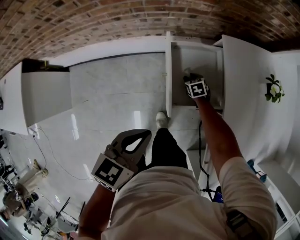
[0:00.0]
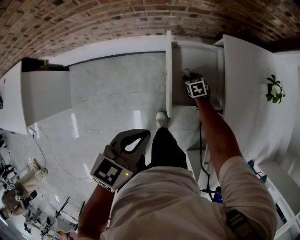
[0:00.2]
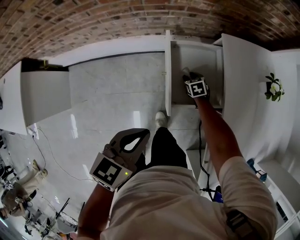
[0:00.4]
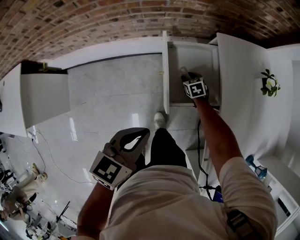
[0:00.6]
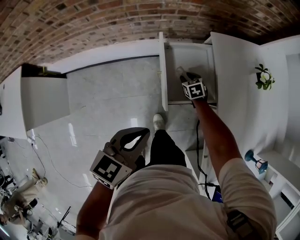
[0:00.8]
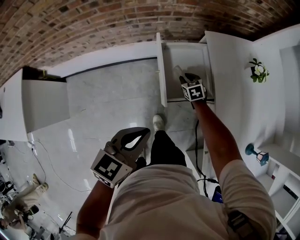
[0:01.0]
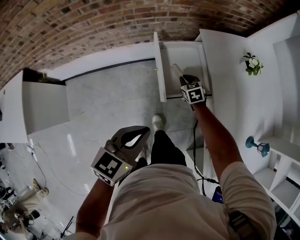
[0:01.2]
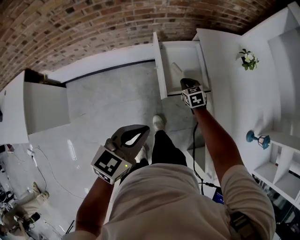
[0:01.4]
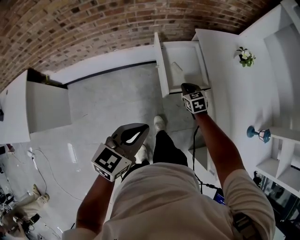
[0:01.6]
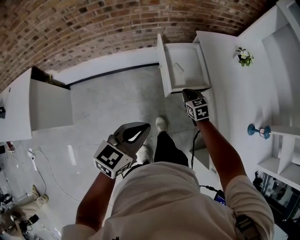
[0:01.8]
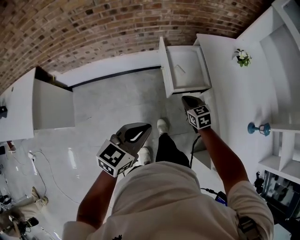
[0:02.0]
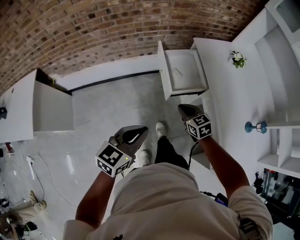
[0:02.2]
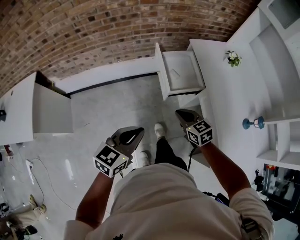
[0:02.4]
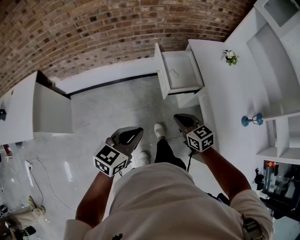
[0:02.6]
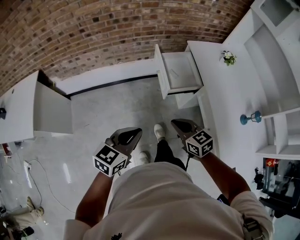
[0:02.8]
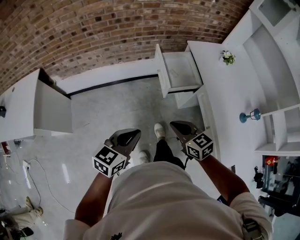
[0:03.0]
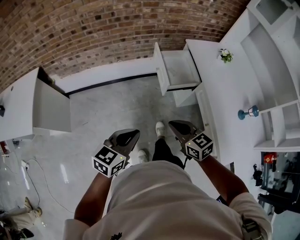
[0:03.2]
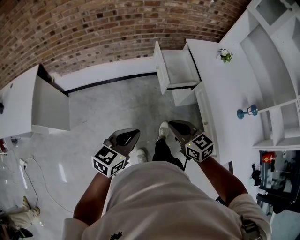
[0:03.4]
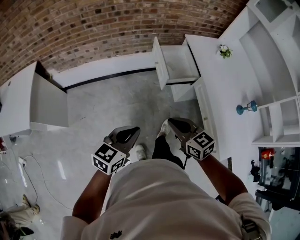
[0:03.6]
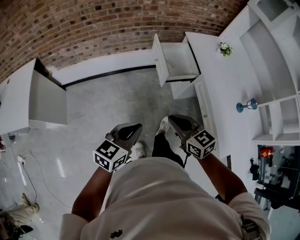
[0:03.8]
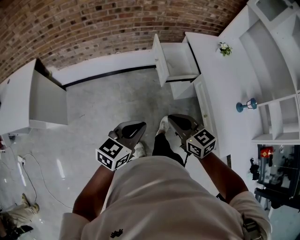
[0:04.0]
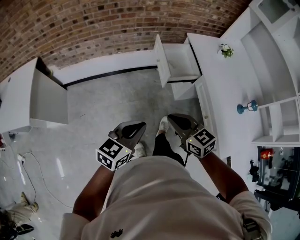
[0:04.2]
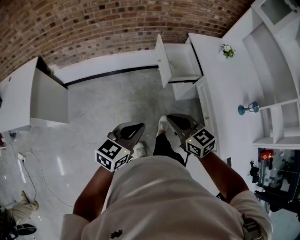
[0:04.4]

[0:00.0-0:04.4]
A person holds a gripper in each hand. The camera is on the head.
0:00.0 to 0:01.4: The right gripper shifts roughly 20 cm upward and backward, and closes up, while the left gripper shifts some 15 cm backward and upward.
0:01.4 to 0:03.0: The left gripper heads backward and to the left, covering approximately 20 cm. The right gripper goes about 40 cm backward and upward, and turns by approximately 30 degrees.
0:03.0 to 0:04.4: The right gripper shifts by approximately 5 cm.

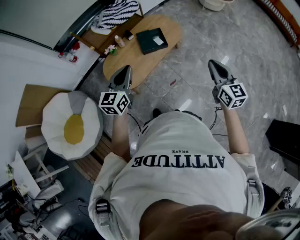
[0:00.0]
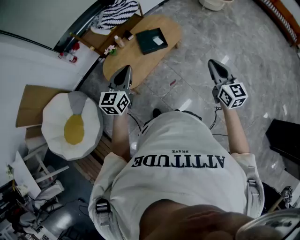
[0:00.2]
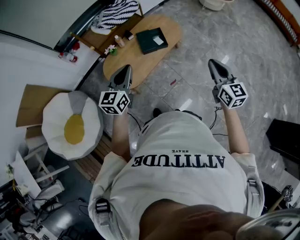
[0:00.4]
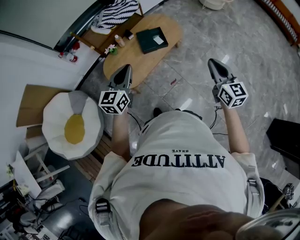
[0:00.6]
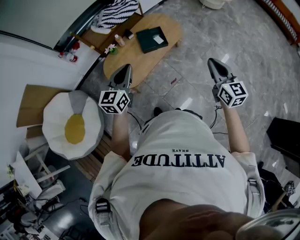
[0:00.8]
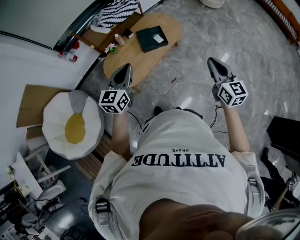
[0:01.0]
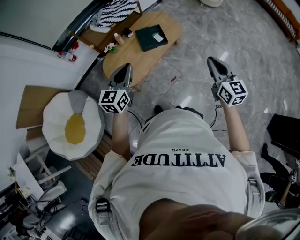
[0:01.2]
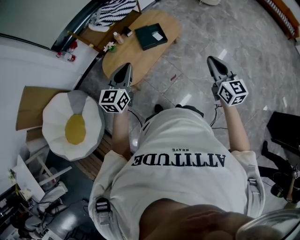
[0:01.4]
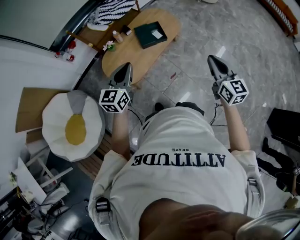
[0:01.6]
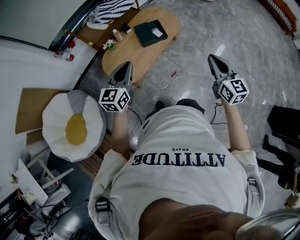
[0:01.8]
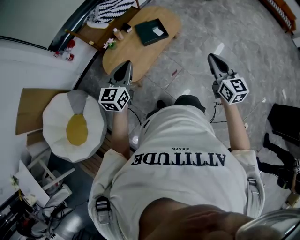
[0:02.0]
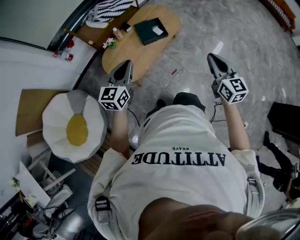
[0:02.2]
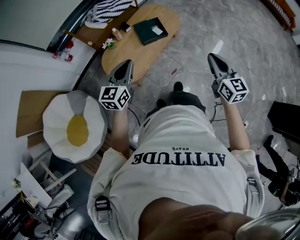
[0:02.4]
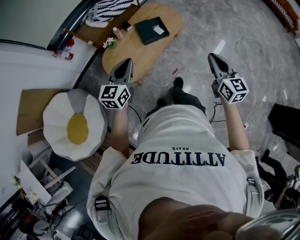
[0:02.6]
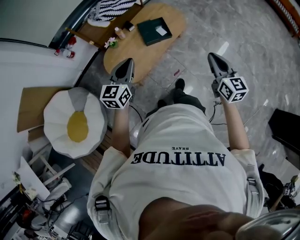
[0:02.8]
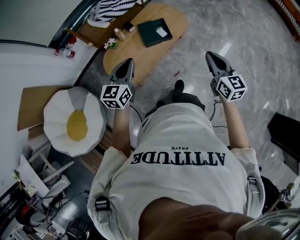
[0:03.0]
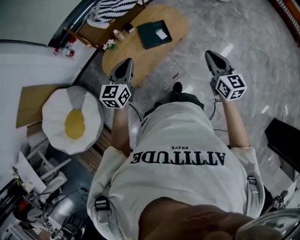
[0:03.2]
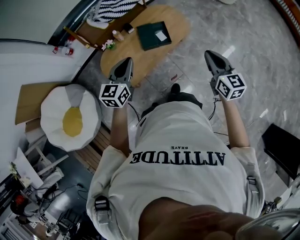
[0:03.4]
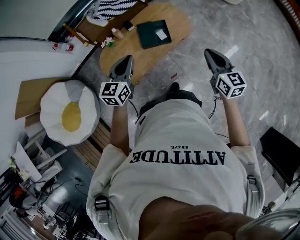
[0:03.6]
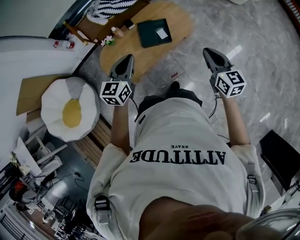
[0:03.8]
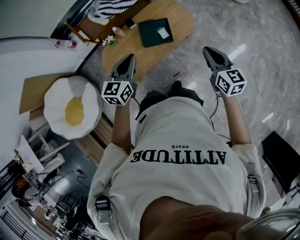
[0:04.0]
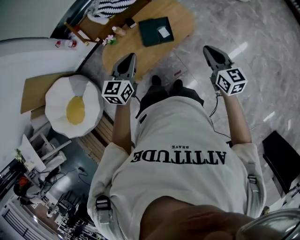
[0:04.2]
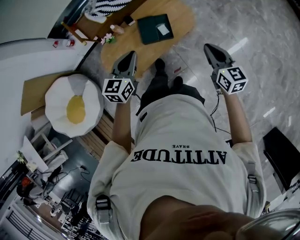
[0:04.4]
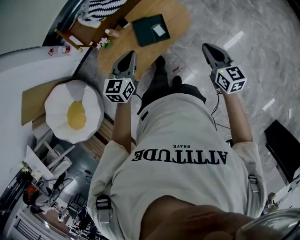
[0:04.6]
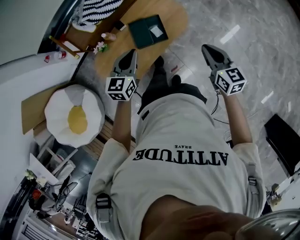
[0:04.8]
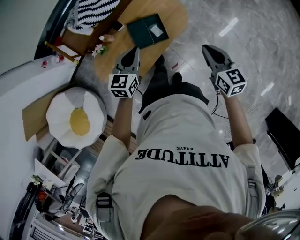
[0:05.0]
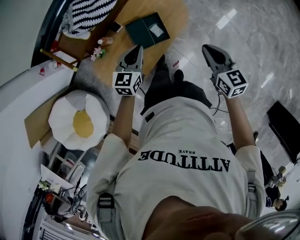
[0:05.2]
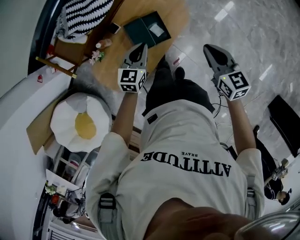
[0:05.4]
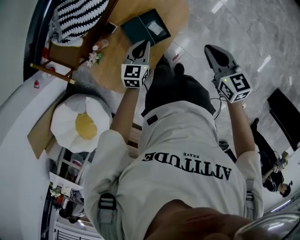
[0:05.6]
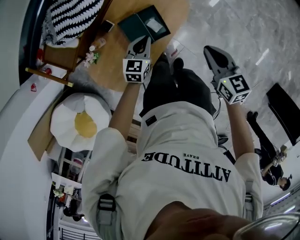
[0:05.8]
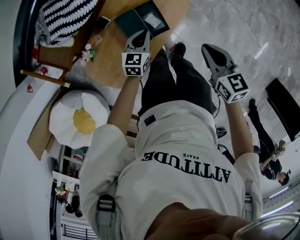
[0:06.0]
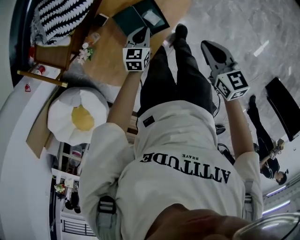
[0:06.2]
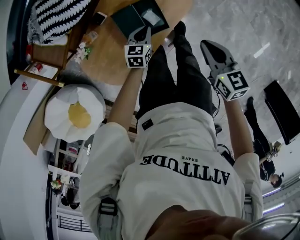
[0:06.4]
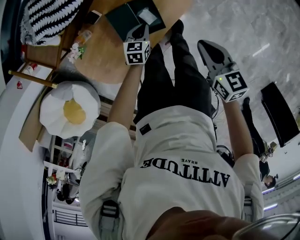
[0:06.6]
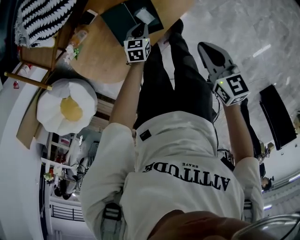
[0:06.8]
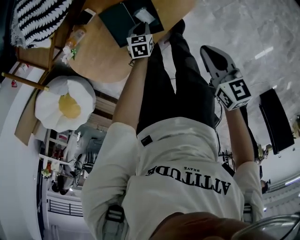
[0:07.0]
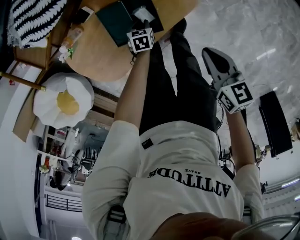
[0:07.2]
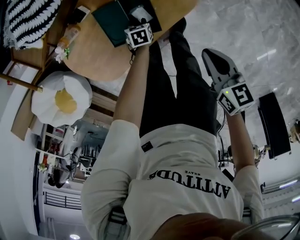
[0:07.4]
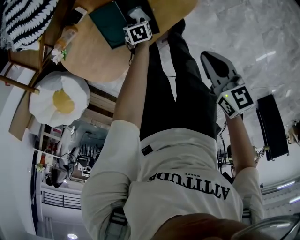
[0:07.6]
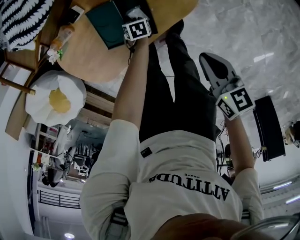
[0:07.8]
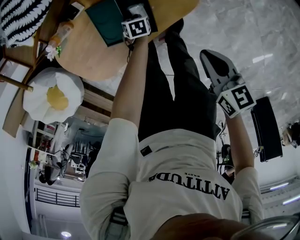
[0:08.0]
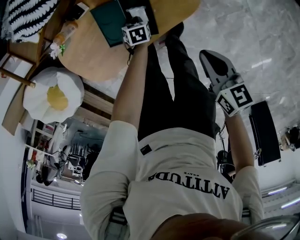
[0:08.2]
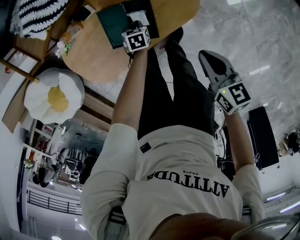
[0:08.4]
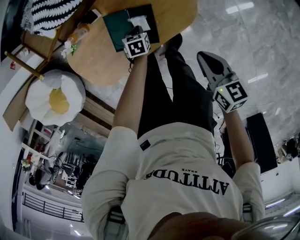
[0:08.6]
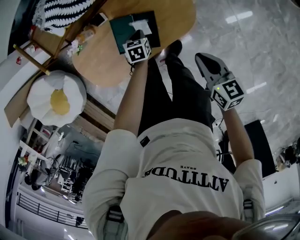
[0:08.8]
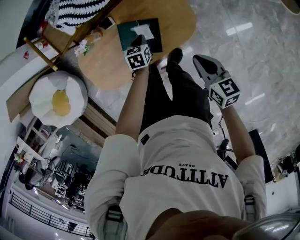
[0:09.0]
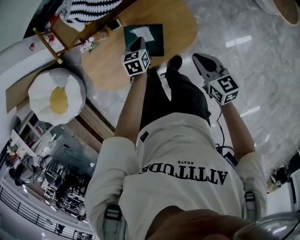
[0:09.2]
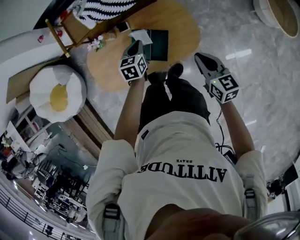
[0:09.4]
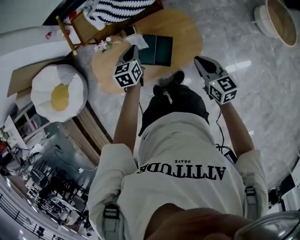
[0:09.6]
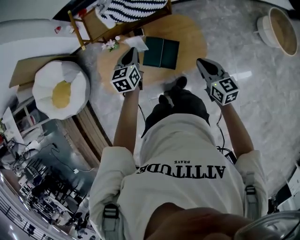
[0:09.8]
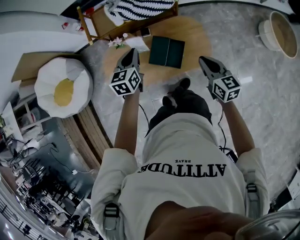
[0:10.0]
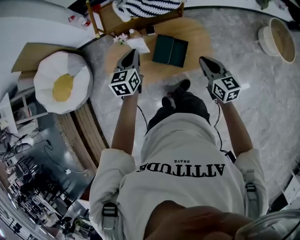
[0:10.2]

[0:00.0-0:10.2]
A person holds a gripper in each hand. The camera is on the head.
0:00.0 to 0:01.4: The grippers move only a little.
0:01.4 to 0:03.0: The grippers both shift forward by some 10 cm.
0:03.0 to 0:04.4: The grippers both shift forward and to the right by roughly 20 cm.
0:04.4 to 0:05.8: The left gripper travels downward and forward by roughly 40 cm, and swivels roughly 20 degrees, while the right gripper moves forward, downward and to the left, roughly 25 cm, and rotates roughly 20 degrees.
0:05.8 to 0:07.2: The right gripper moves downward, about 15 cm. The left gripper is displaced downward by approximately 30 cm, and angles its fingers downward, by about 40 degrees.
0:07.2 to 0:08.8: The right gripper heads upward, covering about 5 cm; the left gripper shifts approximately 15 cm upward.
0:08.8 to 0:10.2: The right gripper travels upward and to the left by approximately 25 cm, and turns by about 30 degrees. Meanwhile the left gripper is displaced upward and to the left by approximately 50 cm, and points its fingers approximately 40 degrees further upward.

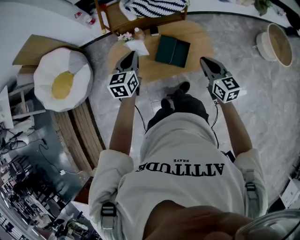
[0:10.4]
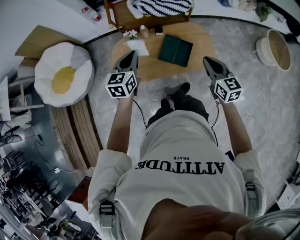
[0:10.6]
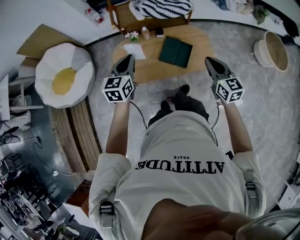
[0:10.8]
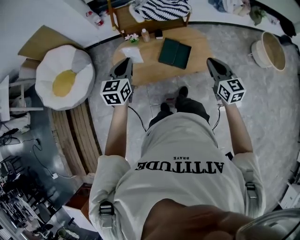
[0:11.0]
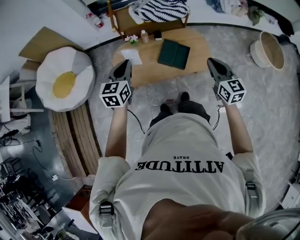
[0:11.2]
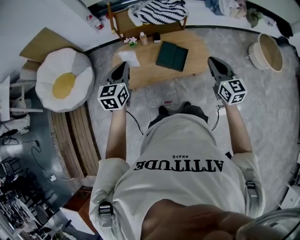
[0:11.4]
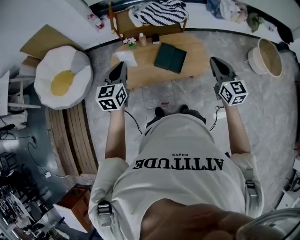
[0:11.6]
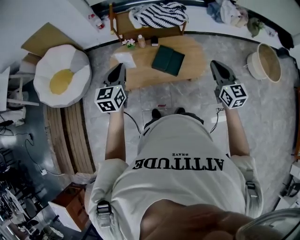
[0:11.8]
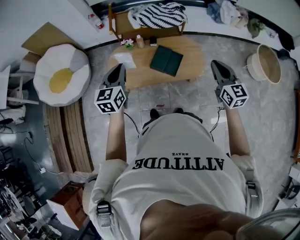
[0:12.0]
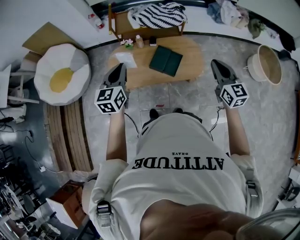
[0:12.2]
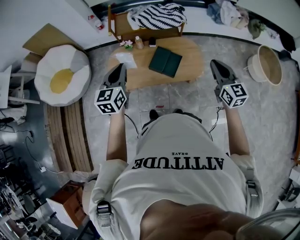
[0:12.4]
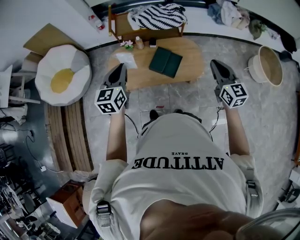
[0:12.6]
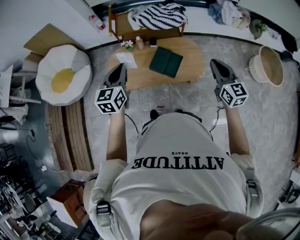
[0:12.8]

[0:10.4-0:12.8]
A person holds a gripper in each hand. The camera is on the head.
0:10.4 to 0:11.6: The left gripper heads backward, upward and to the left, covering roughly 20 cm. Meanwhile the right gripper travels upward and backward by about 15 cm.
0:11.6 to 0:12.8: Both grippers move to the right, approximately 5 cm.

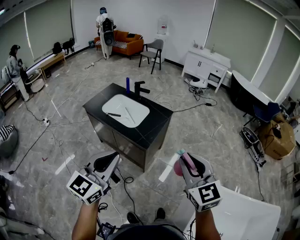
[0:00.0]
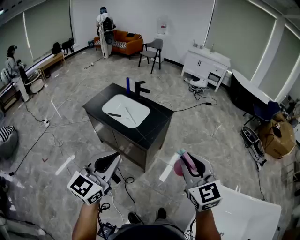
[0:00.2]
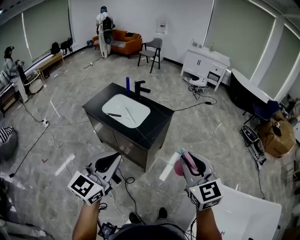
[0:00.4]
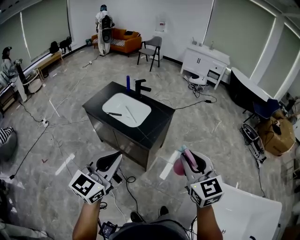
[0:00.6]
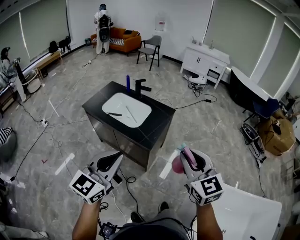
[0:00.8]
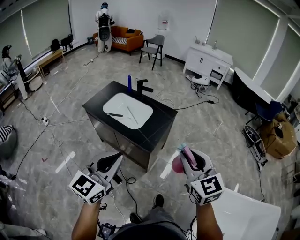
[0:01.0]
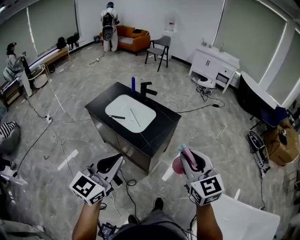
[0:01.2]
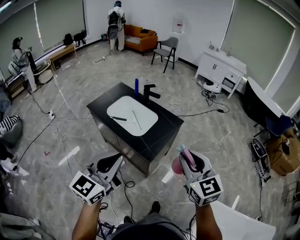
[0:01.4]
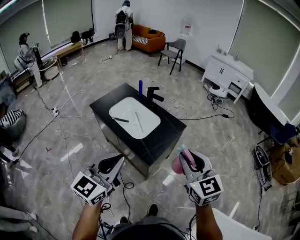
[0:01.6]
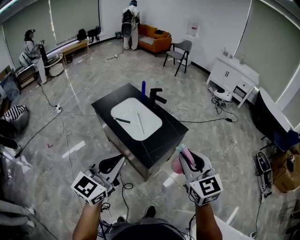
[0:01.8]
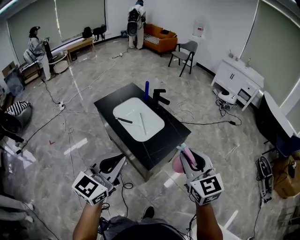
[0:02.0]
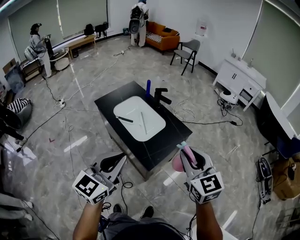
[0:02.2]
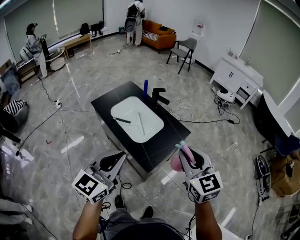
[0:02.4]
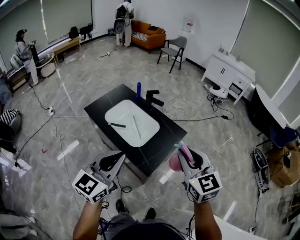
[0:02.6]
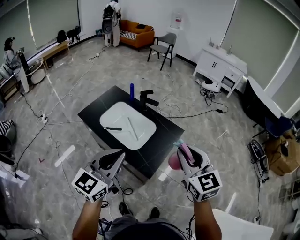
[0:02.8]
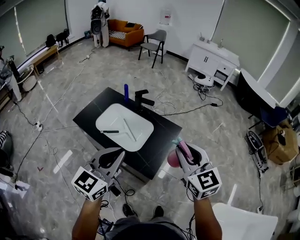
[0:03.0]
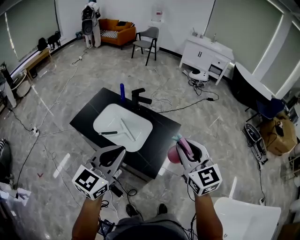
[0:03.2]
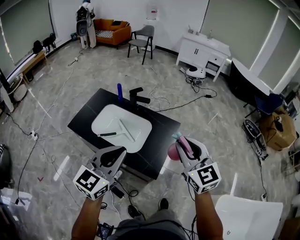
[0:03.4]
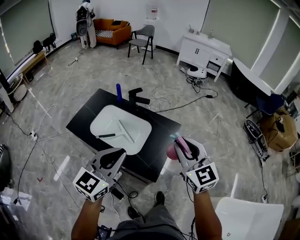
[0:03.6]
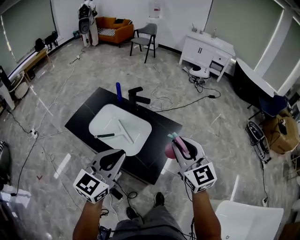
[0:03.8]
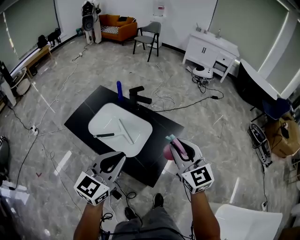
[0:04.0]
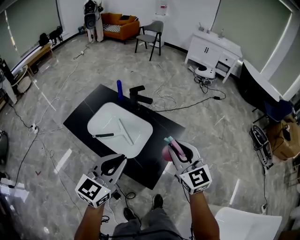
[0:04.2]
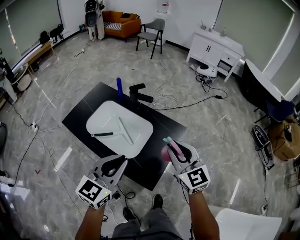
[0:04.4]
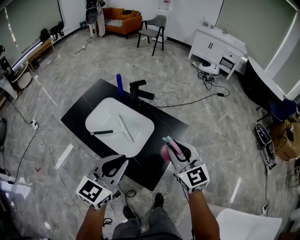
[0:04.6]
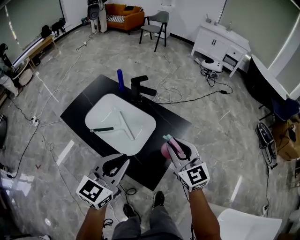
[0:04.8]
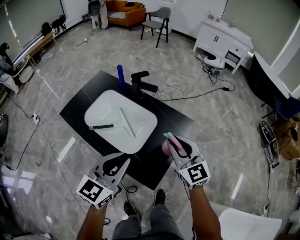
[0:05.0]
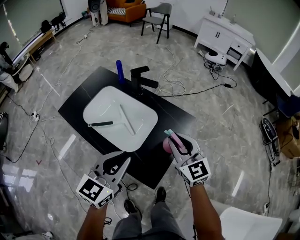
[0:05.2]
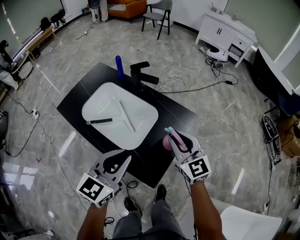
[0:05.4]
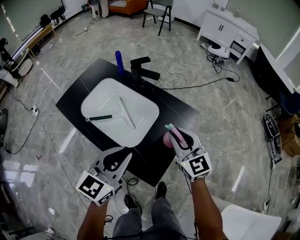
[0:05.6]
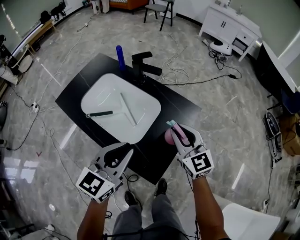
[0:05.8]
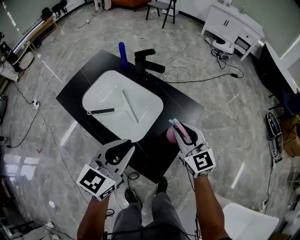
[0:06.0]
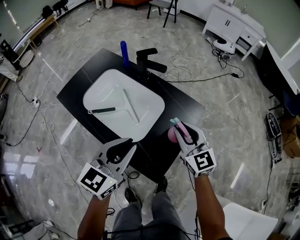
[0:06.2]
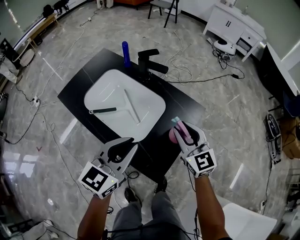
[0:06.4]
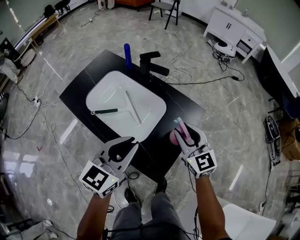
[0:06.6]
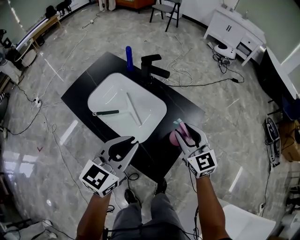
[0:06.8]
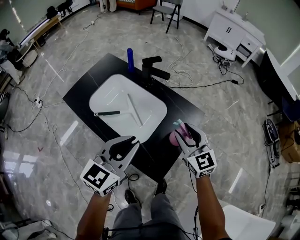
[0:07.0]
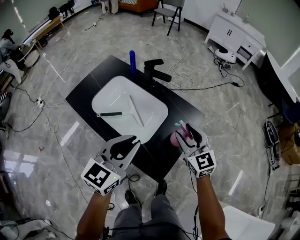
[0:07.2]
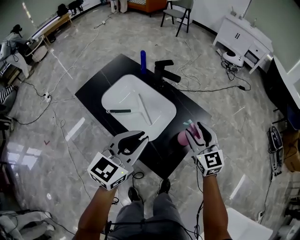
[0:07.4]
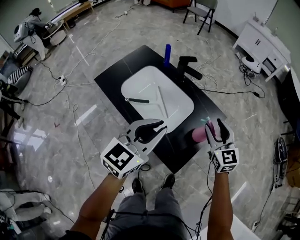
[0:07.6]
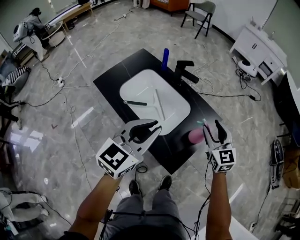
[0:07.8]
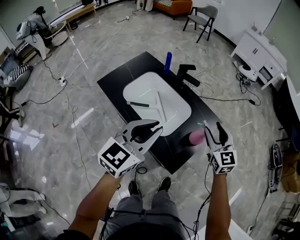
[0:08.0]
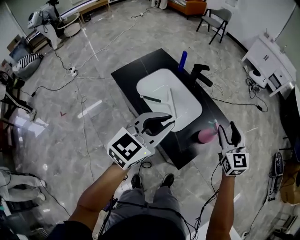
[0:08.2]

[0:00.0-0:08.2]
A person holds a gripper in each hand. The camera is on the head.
0:00.0 to 0:01.6: Both grippers travel together forward, some 20 cm.
0:01.6 to 0:03.2: The grippers both shift forward by approximately 20 cm.
0:03.2 to 0:05.0: The two grippers go about 25 cm downward and forward.
0:05.0 to 0:06.6: The left gripper shifts by some 5 cm. Meanwhile the right gripper is displaced downward by some 5 cm.
0:06.6 to 0:08.2: The left gripper goes roughly 15 cm upward and backward. The right gripper shifts approximately 15 cm upward.
